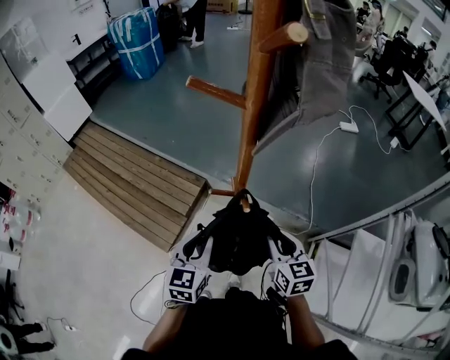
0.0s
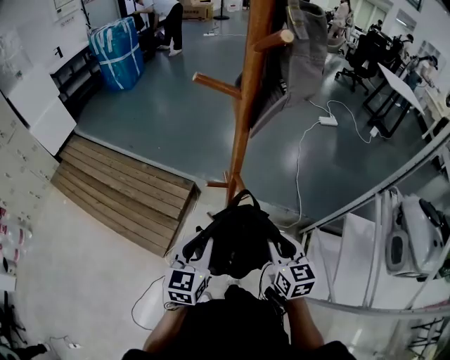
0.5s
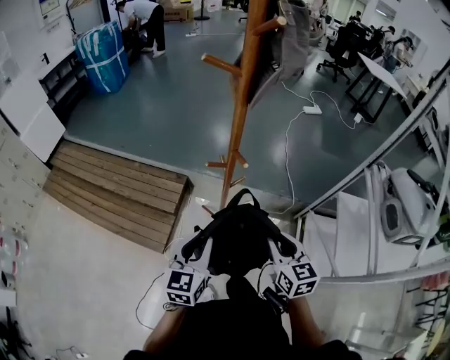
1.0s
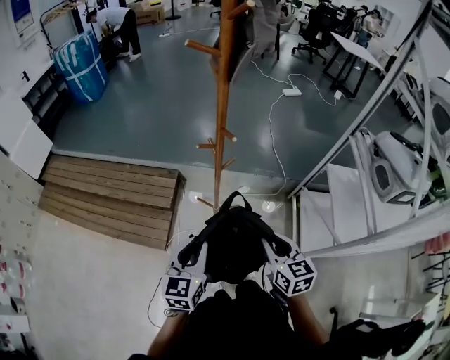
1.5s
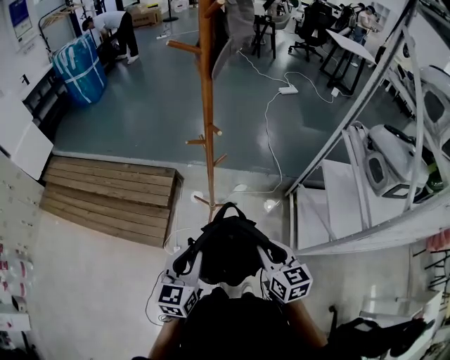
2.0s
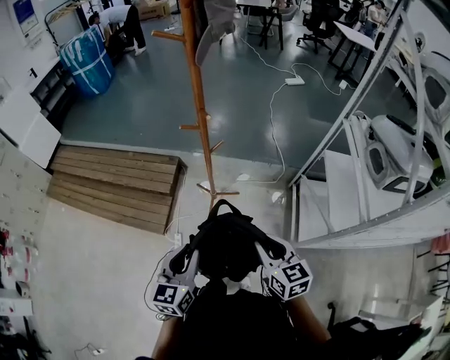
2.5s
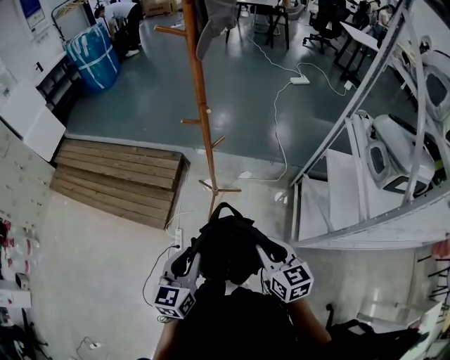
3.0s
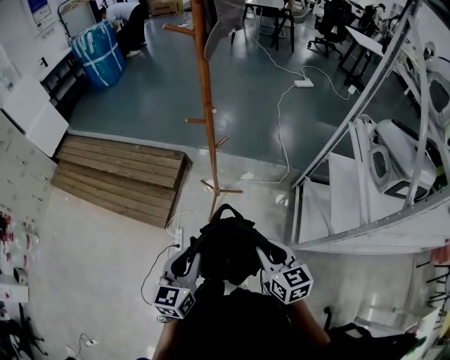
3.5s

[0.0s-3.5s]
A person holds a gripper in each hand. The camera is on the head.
0.0s to 2.0s: The grippers both shift backward by about 30 cm.
2.0s to 3.5s: Both grippers move backward, about 10 cm.

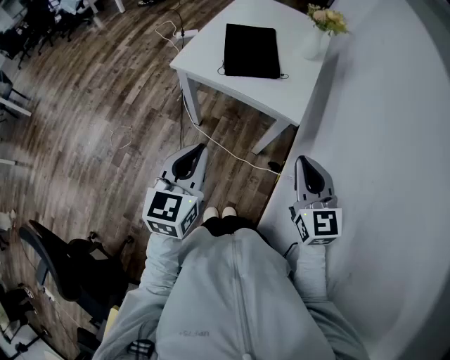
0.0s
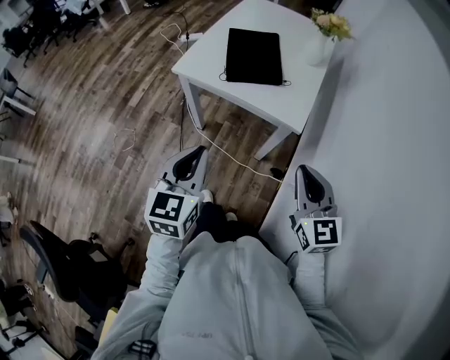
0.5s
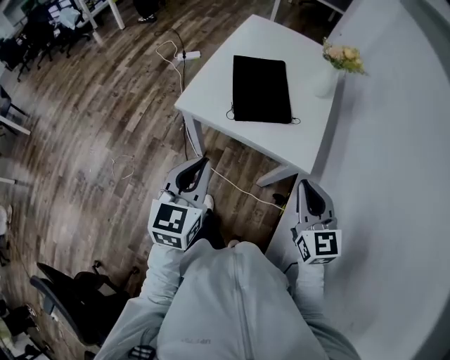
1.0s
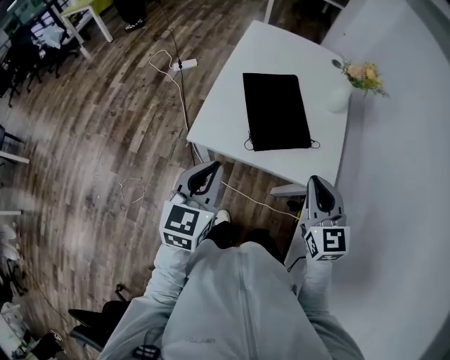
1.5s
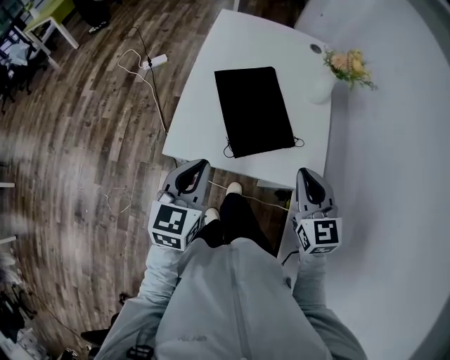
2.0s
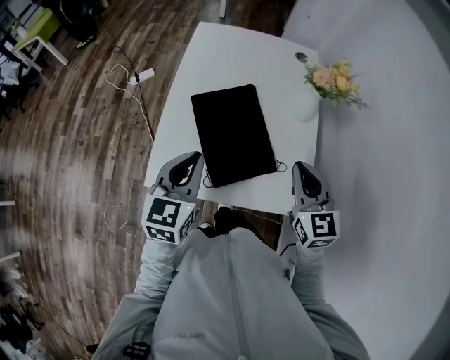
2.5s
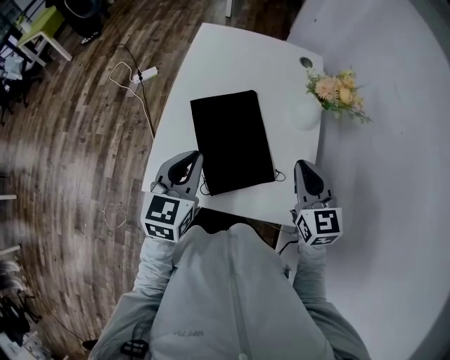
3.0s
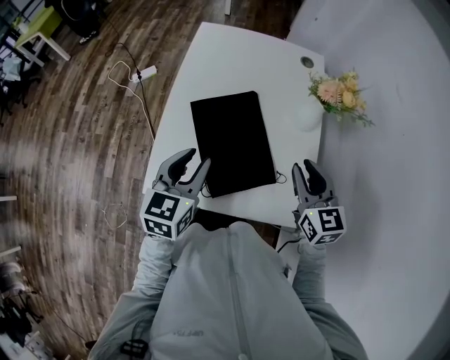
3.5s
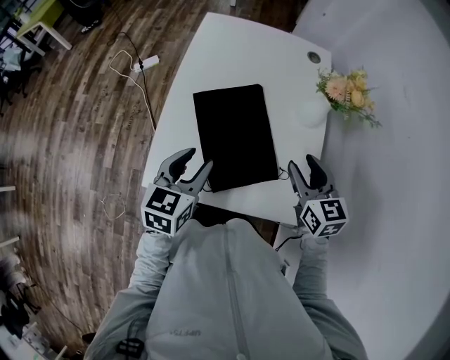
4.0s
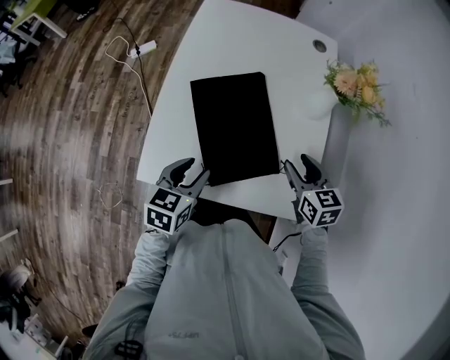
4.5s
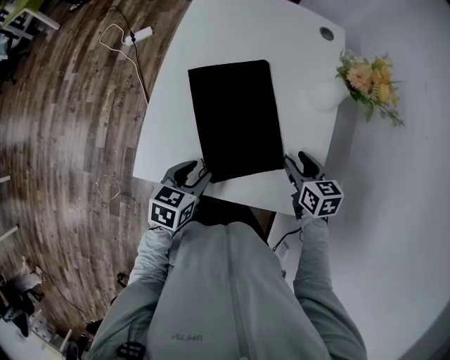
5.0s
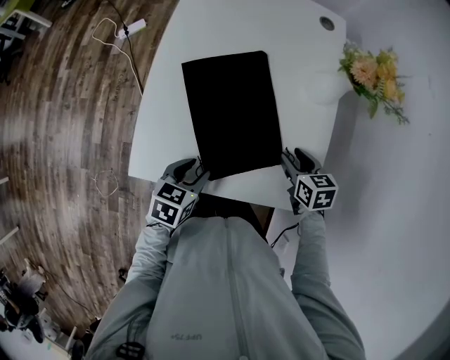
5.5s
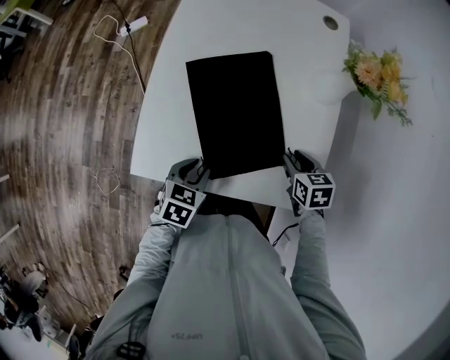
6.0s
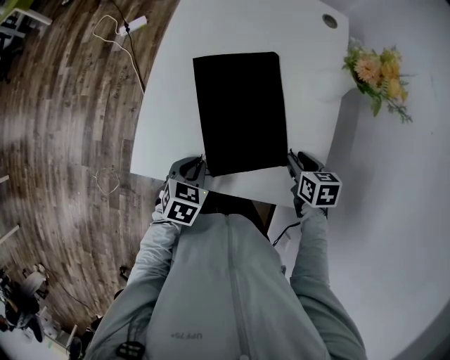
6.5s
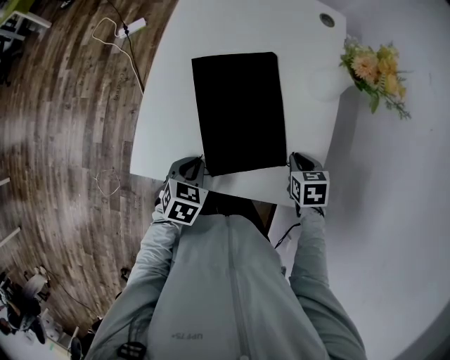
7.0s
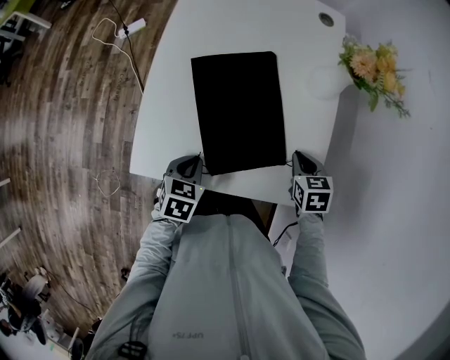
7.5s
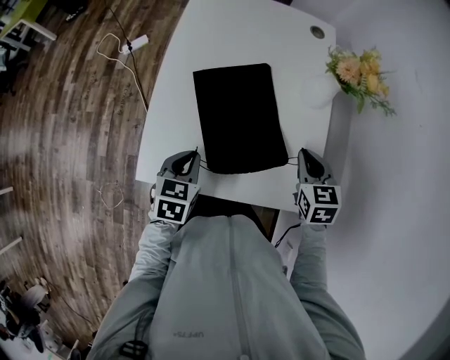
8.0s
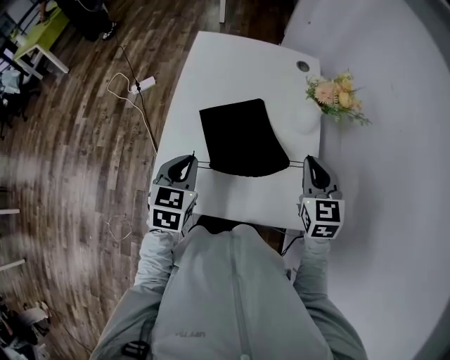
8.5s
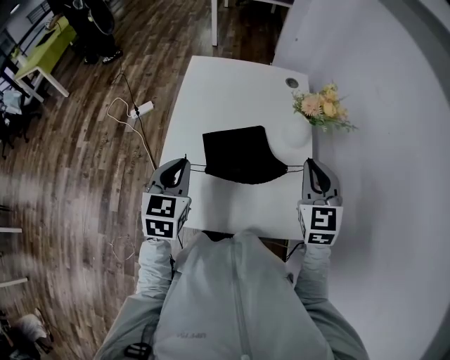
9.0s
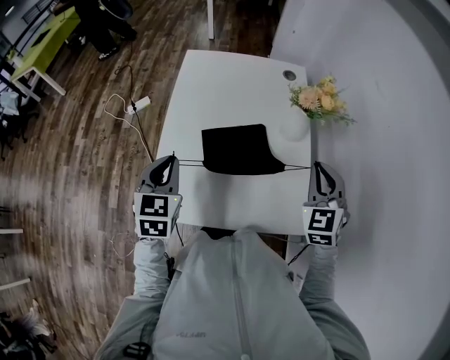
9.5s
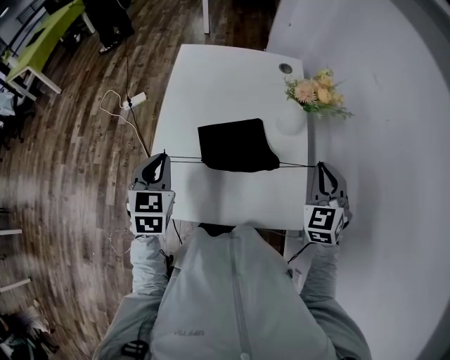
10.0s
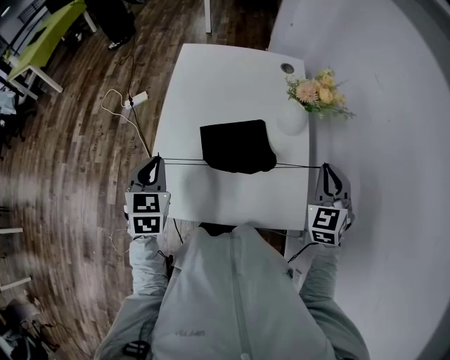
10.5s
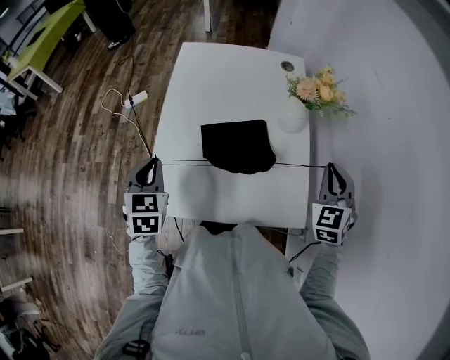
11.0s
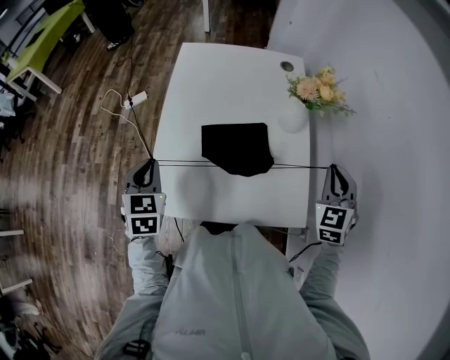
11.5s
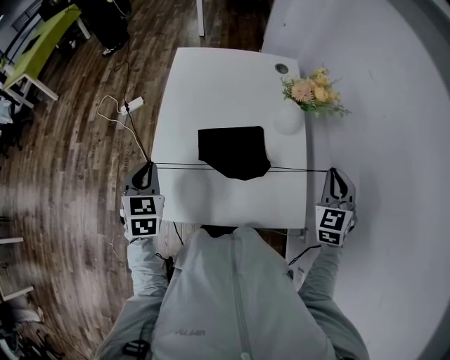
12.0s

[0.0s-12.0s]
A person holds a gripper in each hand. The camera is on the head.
0.0s to 2.0s: Both grippers travel together forward, some 30 cm.
2.0s to 4.0s: The two grippers go about 15 cm forward. The right gripper opens up; the left gripper opens up.
4.0s to 6.0s: The grippers both shift downward by roughly 15 cm. The right gripper tips its fingers downward by about 30 degrees. The left gripper turns by roughly 30 degrees.
6.0s to 8.0s: The left gripper moves upward, roughly 5 cm, and closes up, while the right gripper is displaced upward by approximately 10 cm, turns by roughly 20 degrees, and closes.
8.0s to 10.0s: The right gripper is displaced upward and to the right by about 15 cm, and turns by some 30 degrees; the left gripper heads upward, covering approximately 15 cm, and swivels about 20 degrees.
10.0s to 12.0s: The left gripper ends up approximately 5 cm from where it was. The right gripper moves approximately 5 cm.

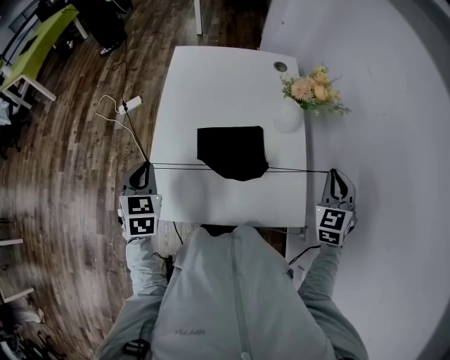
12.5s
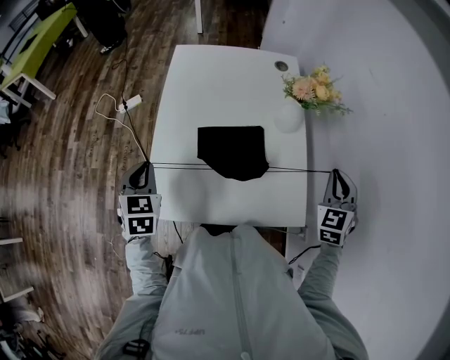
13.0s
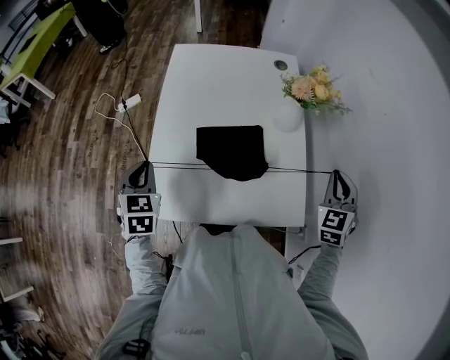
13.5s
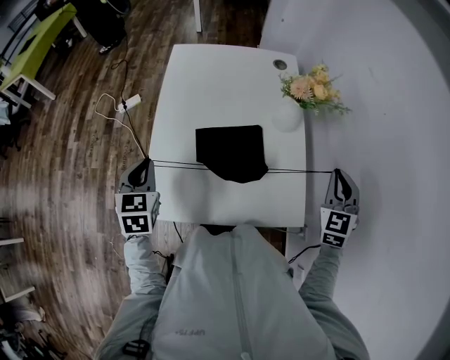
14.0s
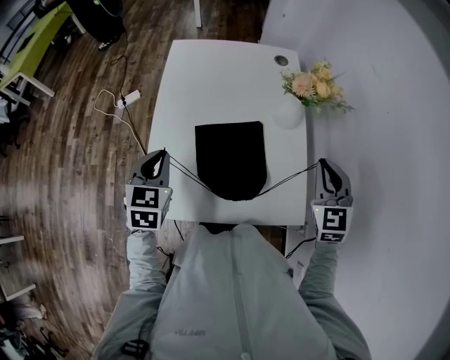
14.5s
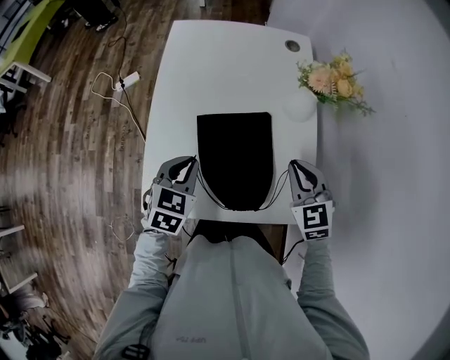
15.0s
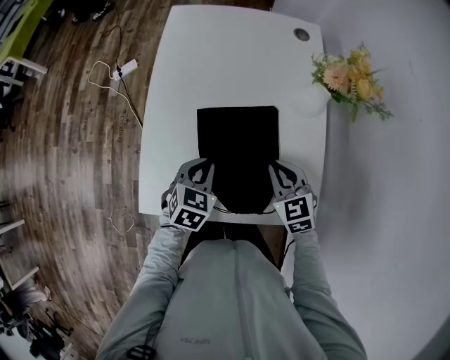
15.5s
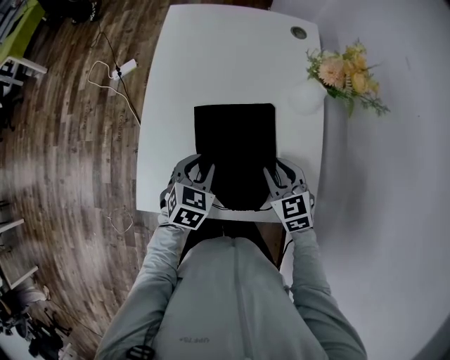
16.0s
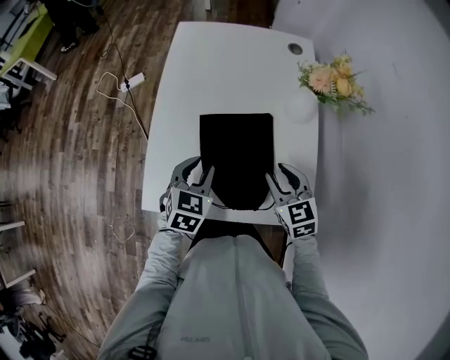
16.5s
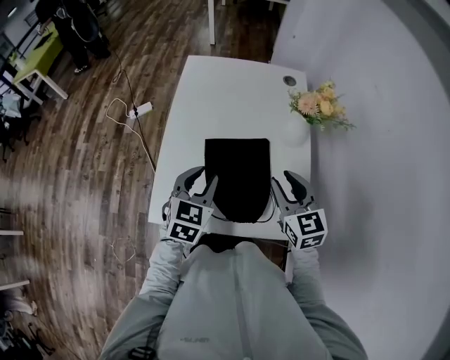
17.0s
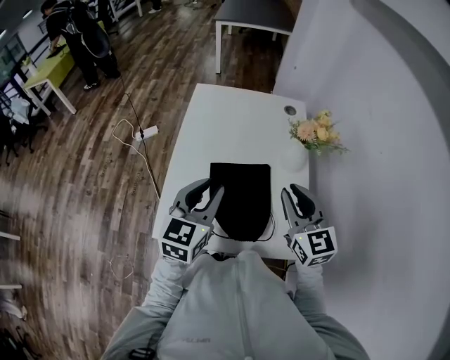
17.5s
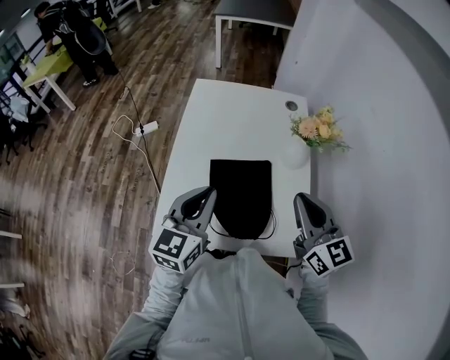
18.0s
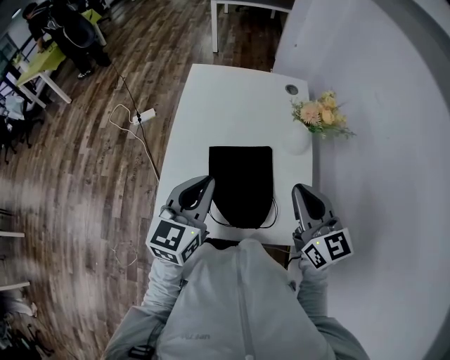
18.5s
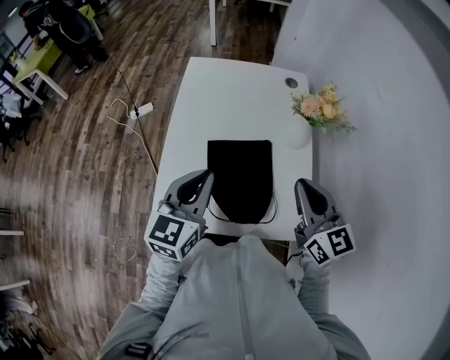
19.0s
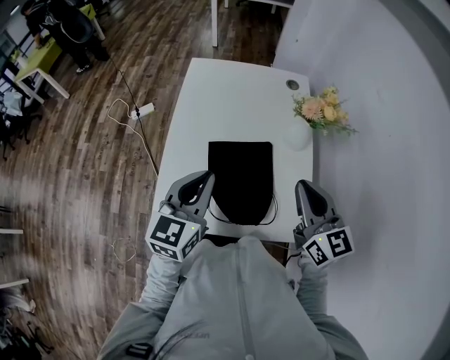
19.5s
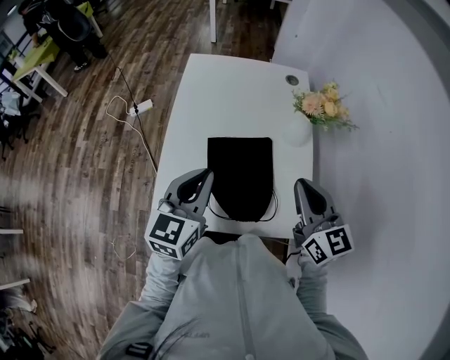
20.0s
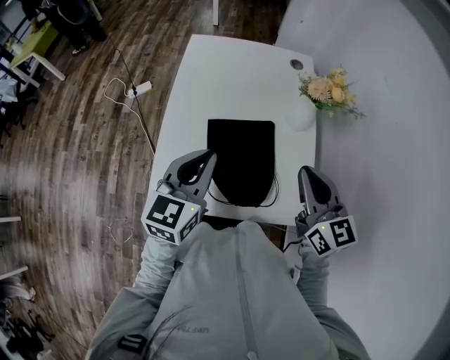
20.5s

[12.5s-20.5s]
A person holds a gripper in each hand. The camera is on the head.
12.5s to 14.5s: The left gripper shifts roughly 5 cm to the right; the right gripper shifts roughly 5 cm to the left.
14.5s to 16.5s: The right gripper heads downward and to the left, covering about 20 cm, rotates approximately 30 degrees, and opens up; the left gripper travels downward and to the right by approximately 15 cm, and opens its fingers.
16.5s to 18.5s: The grippers both shift upward by about 20 cm. The right gripper rotates about 30 degrees, and closes its fingers. The left gripper changes its angle by approximately 30 degrees, and closes up.
18.5s to 20.5s: The grippers make only small movements.

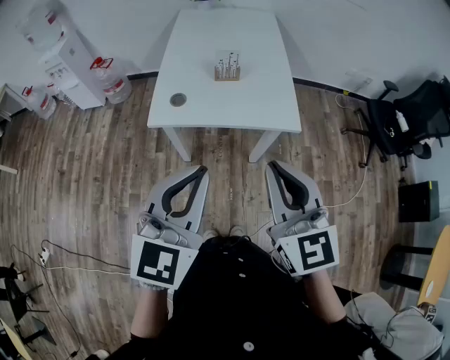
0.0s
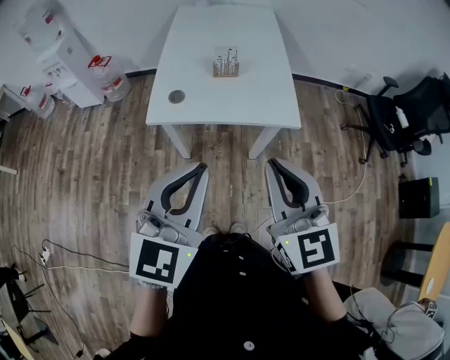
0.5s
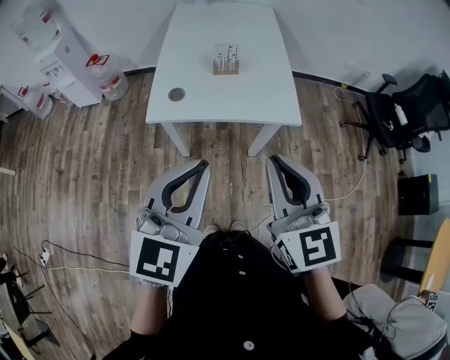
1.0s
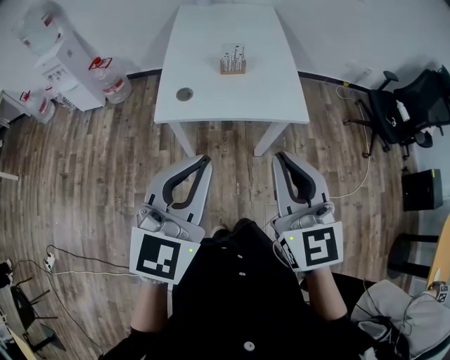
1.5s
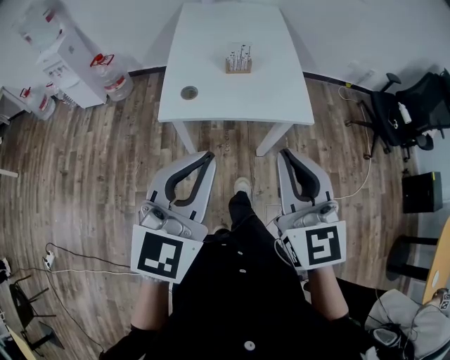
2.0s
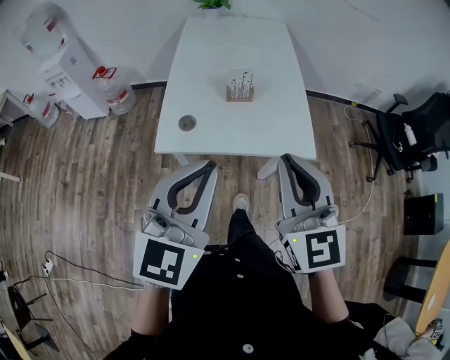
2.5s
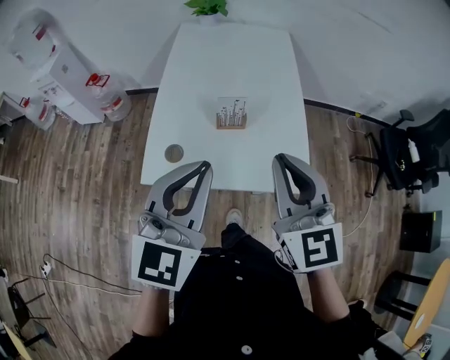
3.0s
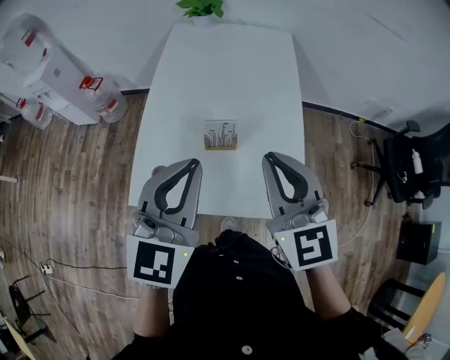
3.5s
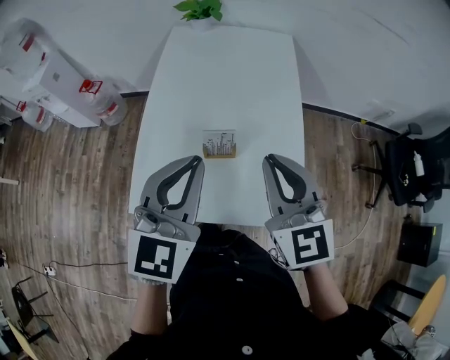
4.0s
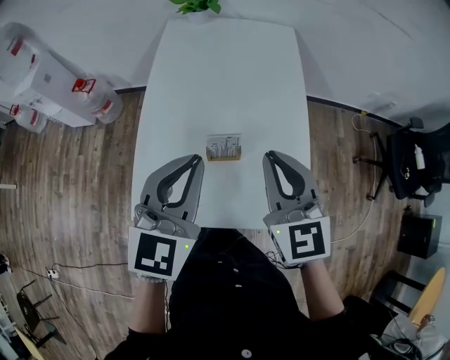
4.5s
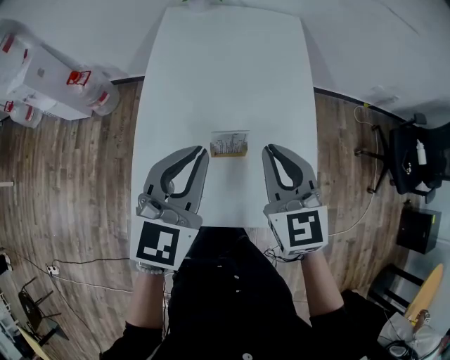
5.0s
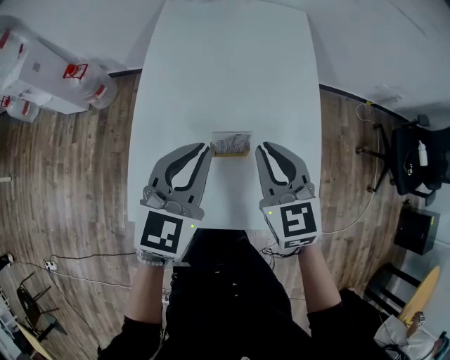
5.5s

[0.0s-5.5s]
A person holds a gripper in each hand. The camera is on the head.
0.0s to 2.0s: The grippers stay close to where they were, moving slightly.
2.0s to 3.5s: Both grippers move forward, about 35 cm.
3.5s to 5.5s: The left gripper moves forward and downward, approximately 15 cm. The right gripper goes roughly 20 cm downward and forward.
